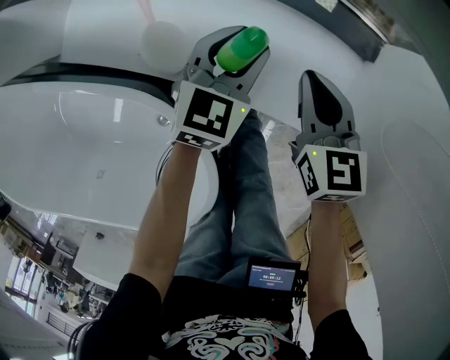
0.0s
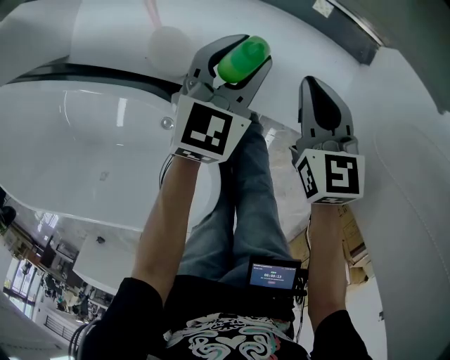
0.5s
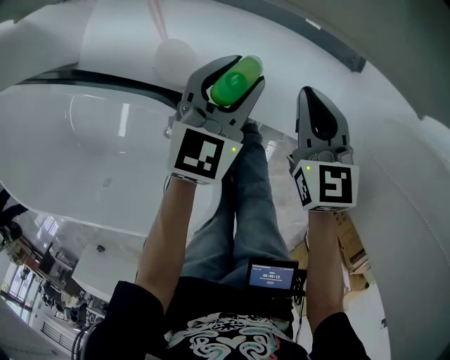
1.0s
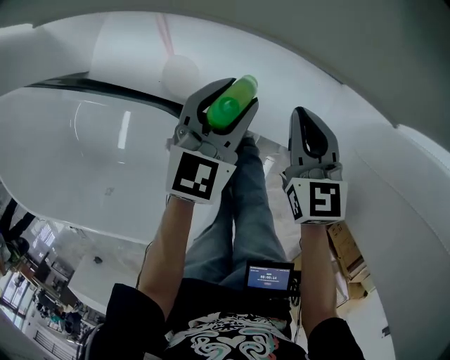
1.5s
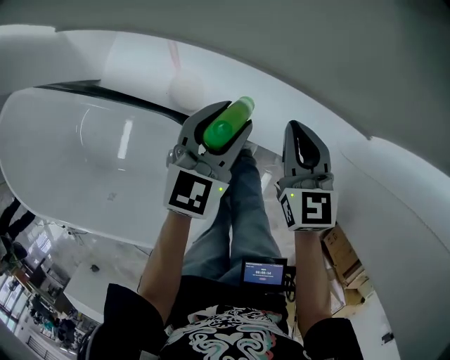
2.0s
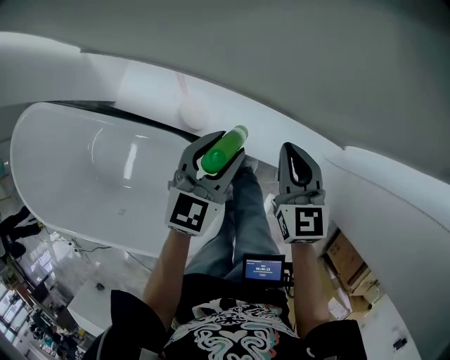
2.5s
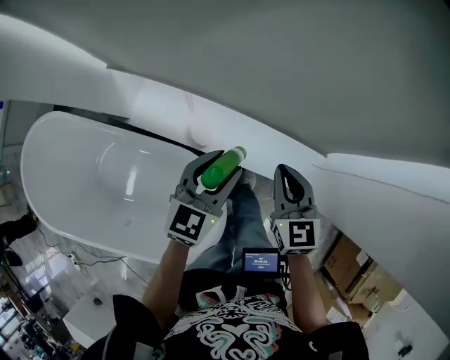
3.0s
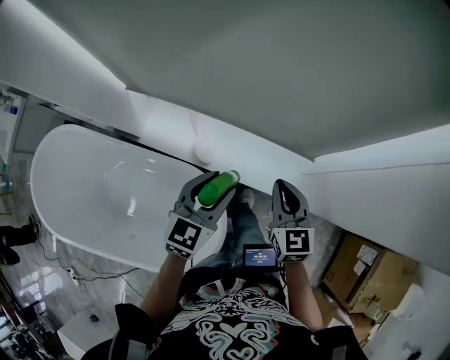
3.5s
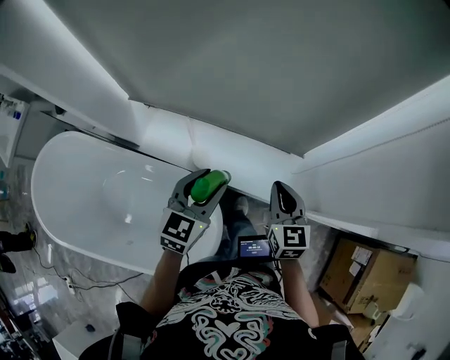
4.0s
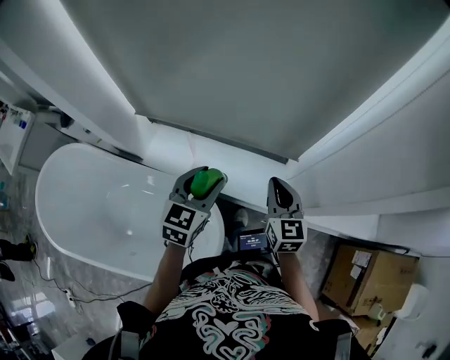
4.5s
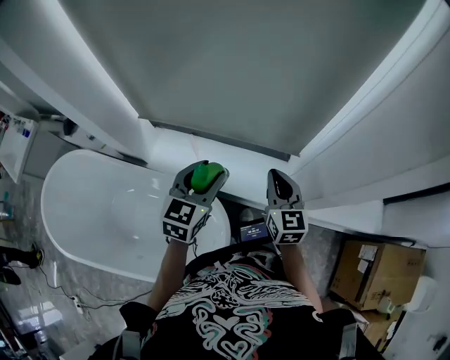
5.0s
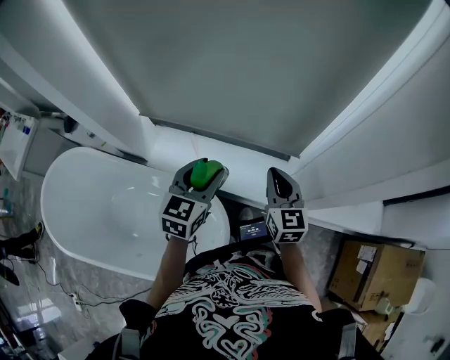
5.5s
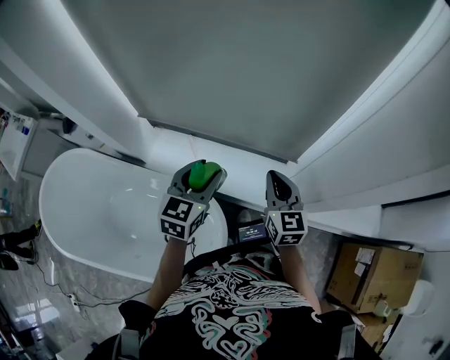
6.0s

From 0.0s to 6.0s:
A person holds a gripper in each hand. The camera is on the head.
From 0.0s to 2.0s: Both grippers travel together upward, about 15 cm.
From 2.0s to 4.0s: The two grippers go some 25 cm upward and backward.
From 4.0s to 6.0s: The two grippers go some 5 cm upward.

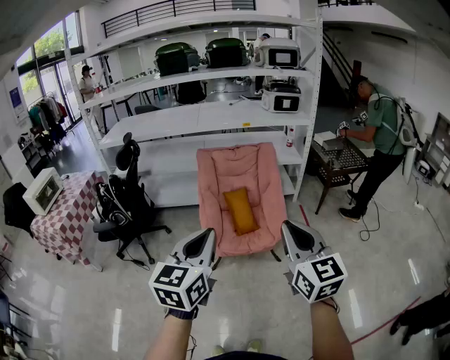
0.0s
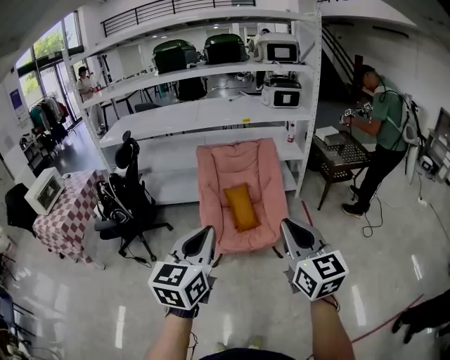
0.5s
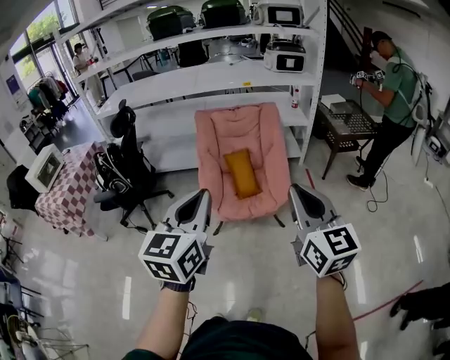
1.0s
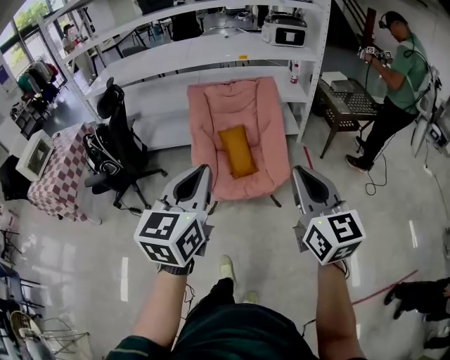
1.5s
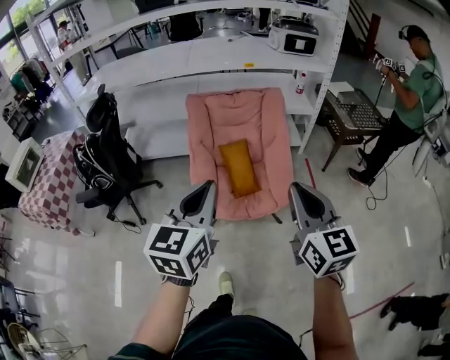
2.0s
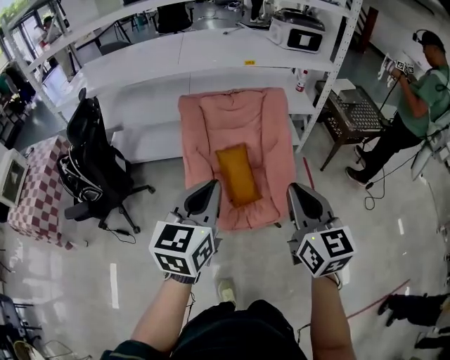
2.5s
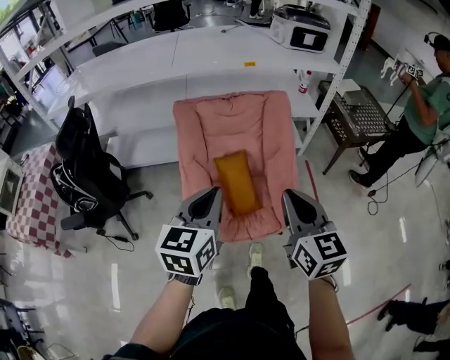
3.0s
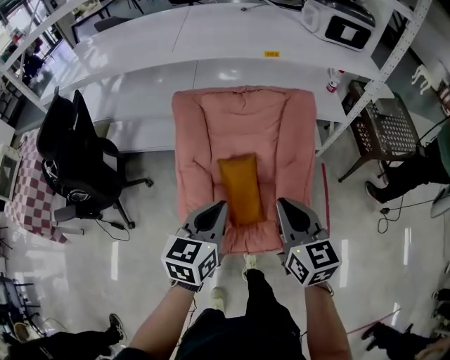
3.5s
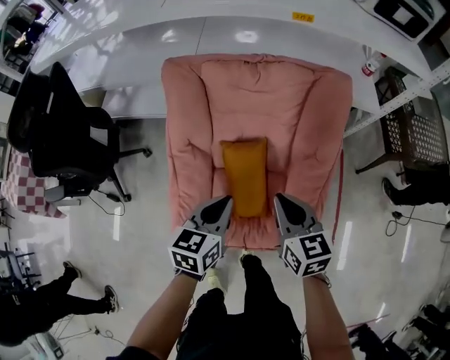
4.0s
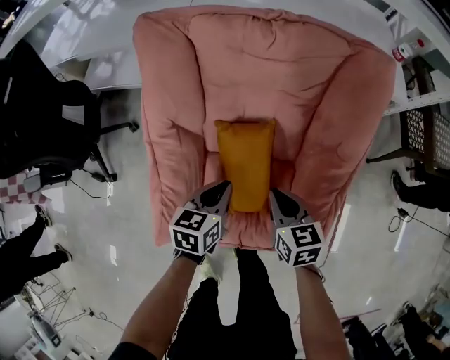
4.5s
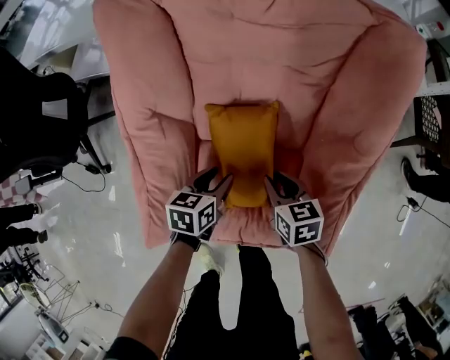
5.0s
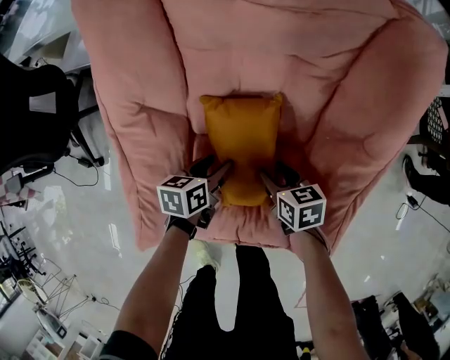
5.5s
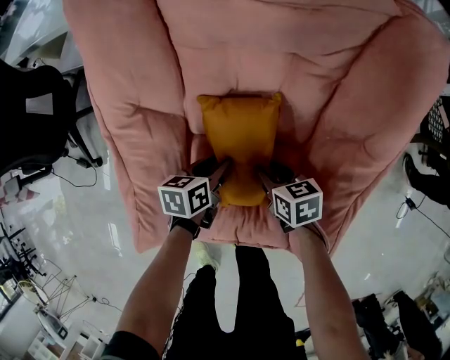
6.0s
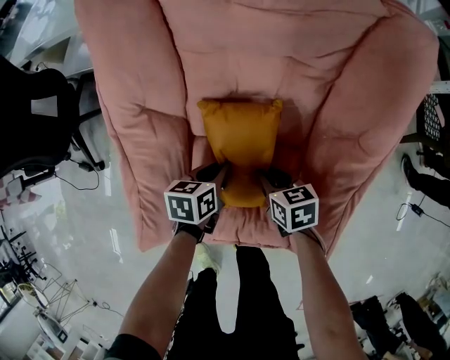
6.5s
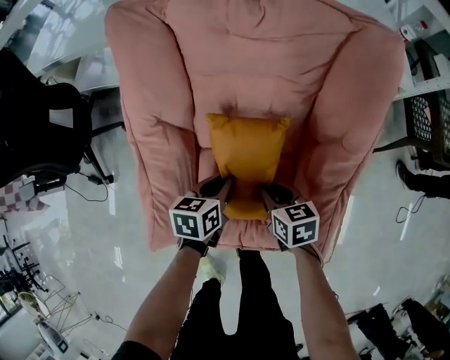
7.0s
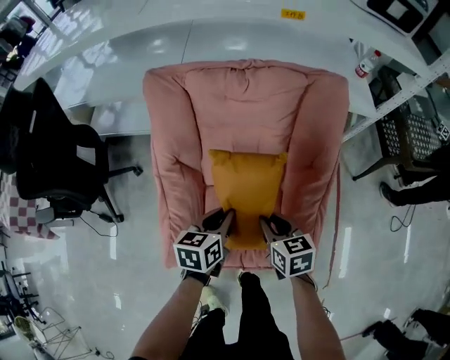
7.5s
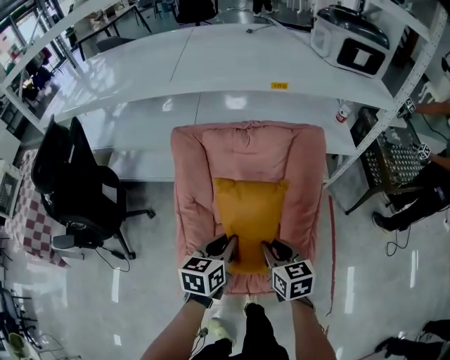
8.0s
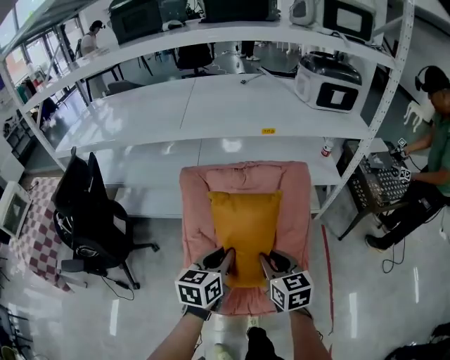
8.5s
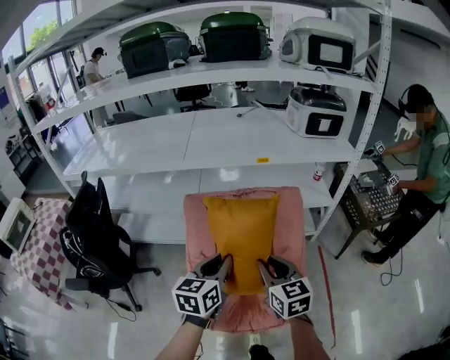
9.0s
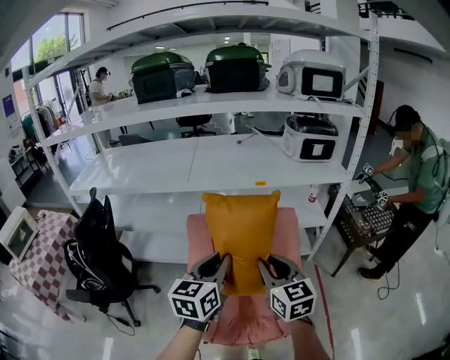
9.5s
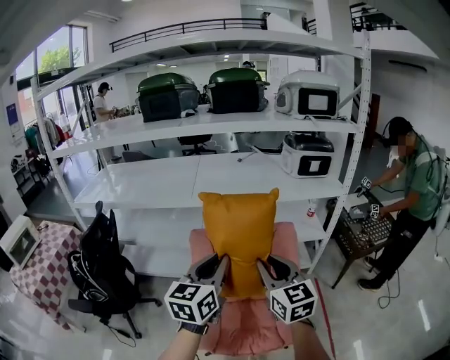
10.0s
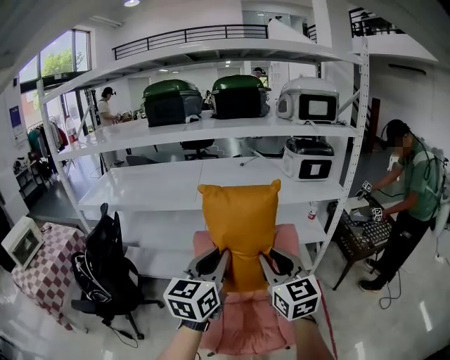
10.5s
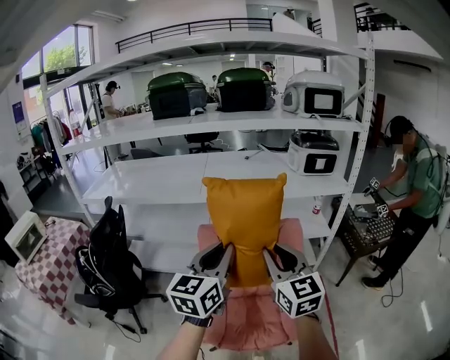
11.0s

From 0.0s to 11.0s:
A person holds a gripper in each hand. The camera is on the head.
From 0.0s to 2.0s: Both grippers travel together forward, some 20 cm.
From 2.0s to 3.5s: Both grippers travel together forward and downward, some 40 cm.
From 3.5s to 5.5s: Both grippers move downward, roughly 50 cm. The left gripper changes its angle by approximately 40 degrees, and opens up. The right gripper tilts its fingers roughly 30 degrees downward, and opens.
From 5.5s to 7.5s: Both grippers travel together upward, about 25 cm. The left gripper closes up. The right gripper closes.
From 7.5s to 9.0s: Both grippers travel together upward, some 35 cm. The left gripper turns by about 30 degrees, while the right gripper changes its angle by some 30 degrees.
From 9.0s to 11.0s: Both grippers travel together upward, some 20 cm. The right gripper changes its angle by roughly 20 degrees, while the left gripper rotates approximately 20 degrees.

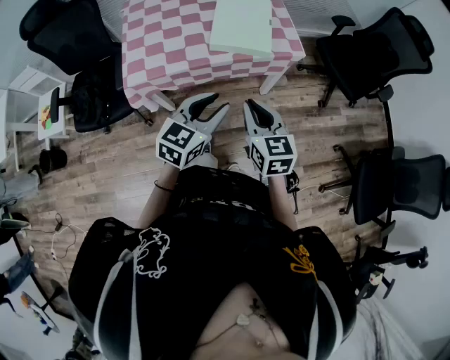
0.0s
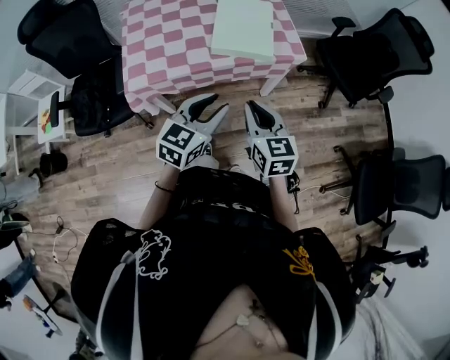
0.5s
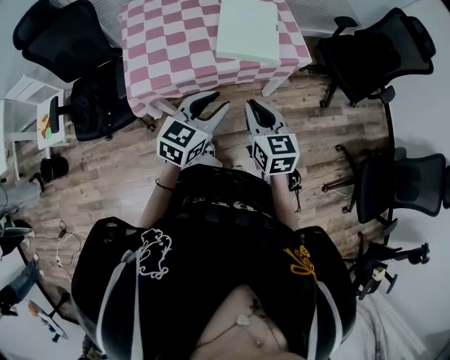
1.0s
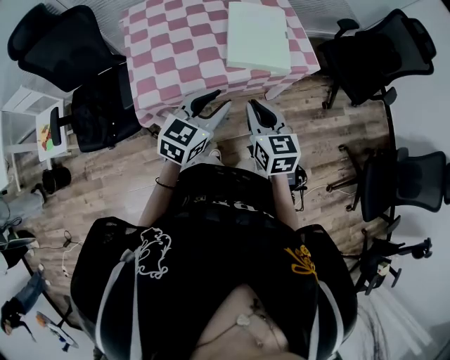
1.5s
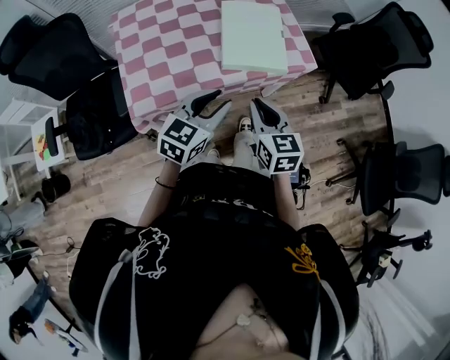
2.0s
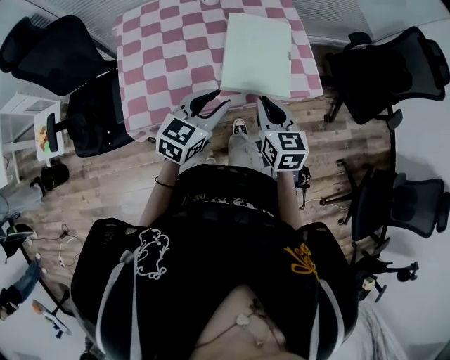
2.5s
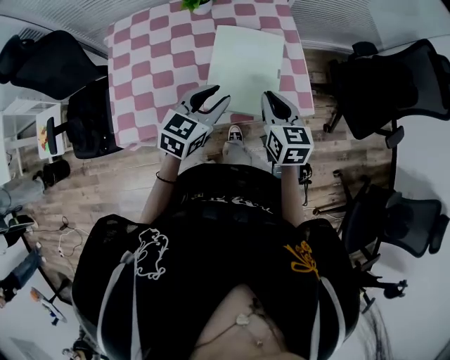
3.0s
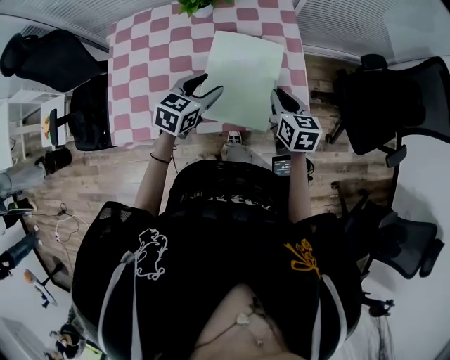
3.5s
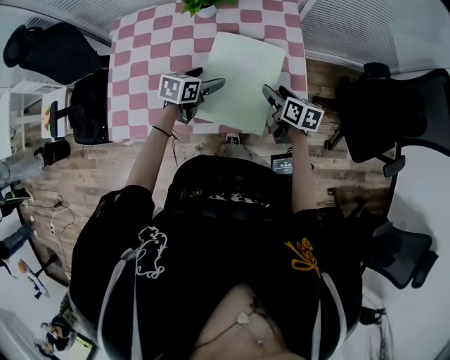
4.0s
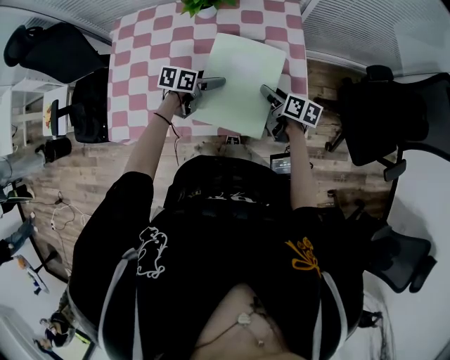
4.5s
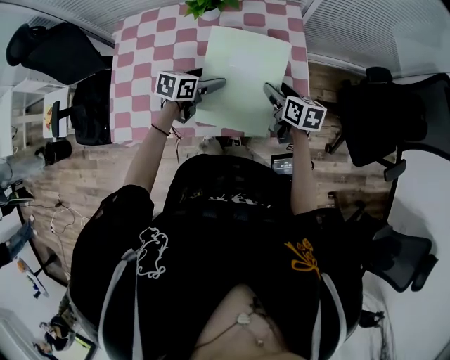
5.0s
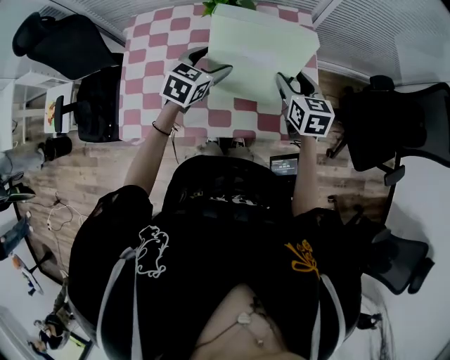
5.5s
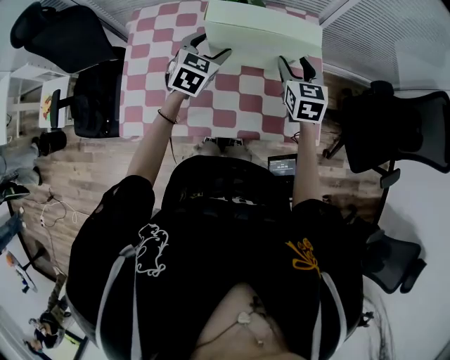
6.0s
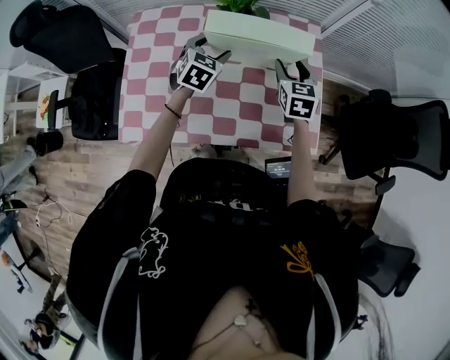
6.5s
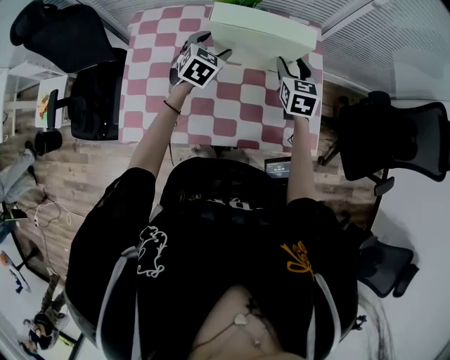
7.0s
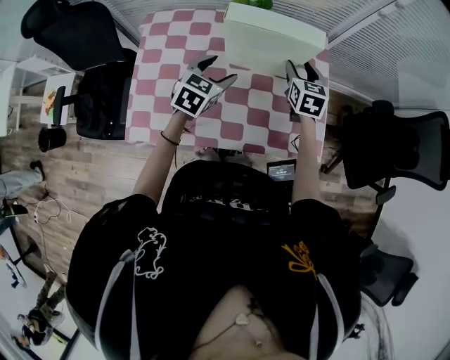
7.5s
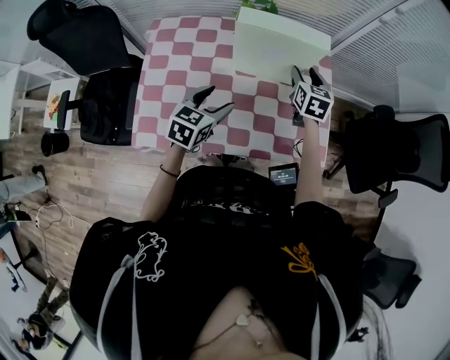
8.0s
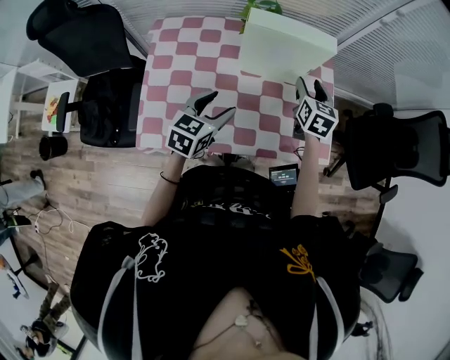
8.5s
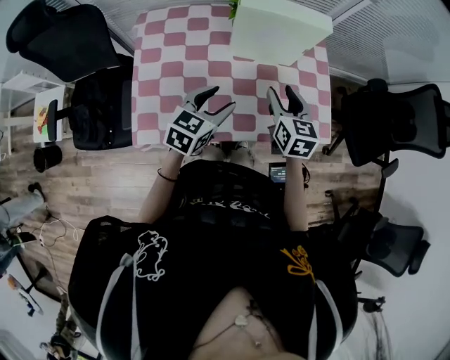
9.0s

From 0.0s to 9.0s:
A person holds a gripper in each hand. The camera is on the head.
From 0.0s to 2.0s: The two grippers go about 15 cm forward and to the left.
From 2.0s to 4.5s: The grippers both shift forward and downward by some 40 cm. The right gripper turns by approximately 40 degrees, and opens. Meanwhile the left gripper rotates around the line of its fingers by approximately 40 degrees, counterclockwise from behind, and opens.
From 4.5s to 7.0s: The right gripper moves upward, forward and to the left, roughly 20 cm, and twists approximately 50 degrees counterclockwise, seen from behind. Meanwhile the left gripper moves upward, to the left and forward, about 20 cm, and rotates around the line of its fingers by roughly 40 degrees, clockwise from behind.
From 7.0s to 9.0s: Both grippers travel together backward, about 20 cm. The left gripper rotates about 30 degrees.

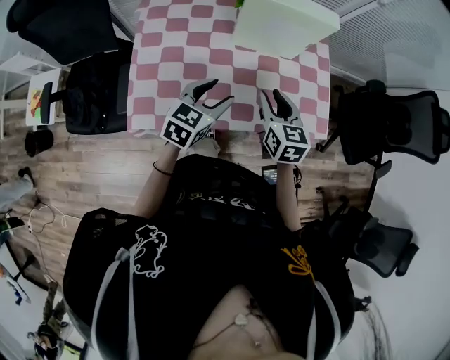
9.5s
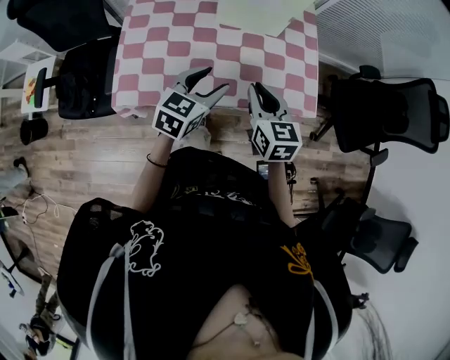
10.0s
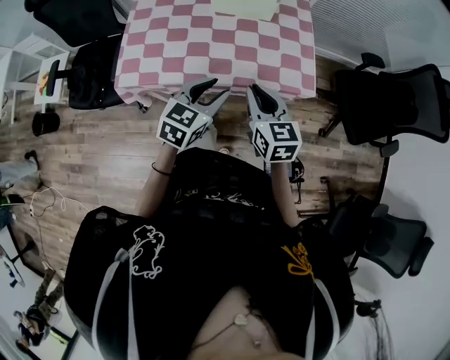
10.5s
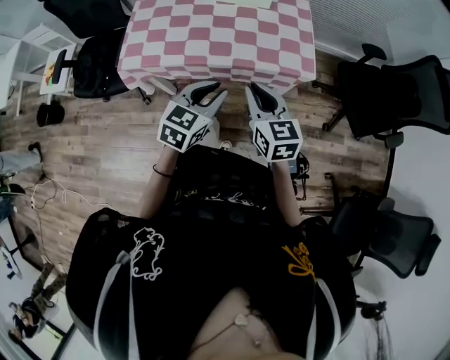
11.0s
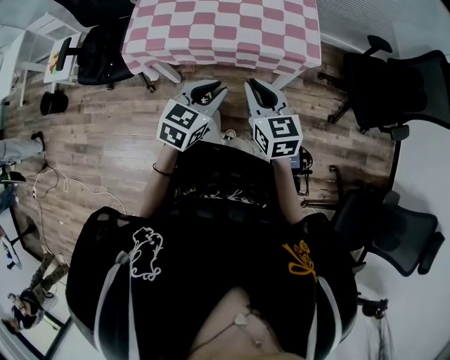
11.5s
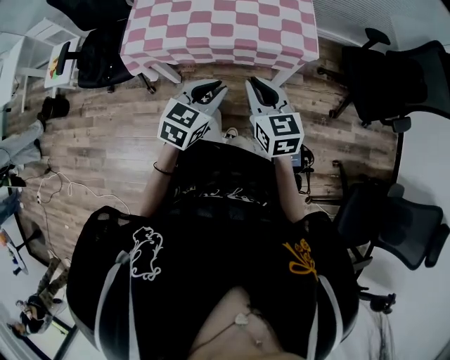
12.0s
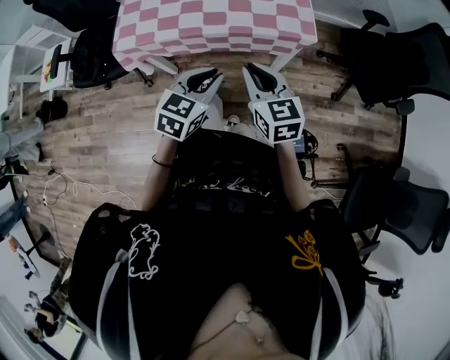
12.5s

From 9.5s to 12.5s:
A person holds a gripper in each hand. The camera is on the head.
From 9.5s to 11.0s: Both grippers move backward and to the right, roughly 25 cm. The left gripper closes up. Meanwhile the right gripper closes up.
From 11.0s to 12.5s: The left gripper shifts by approximately 5 cm.
